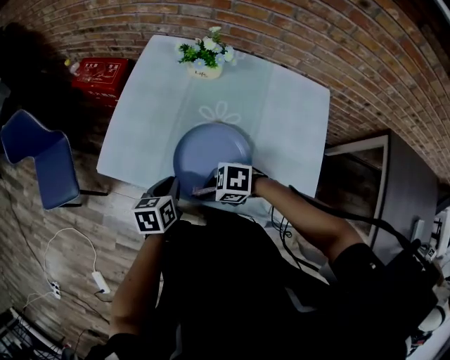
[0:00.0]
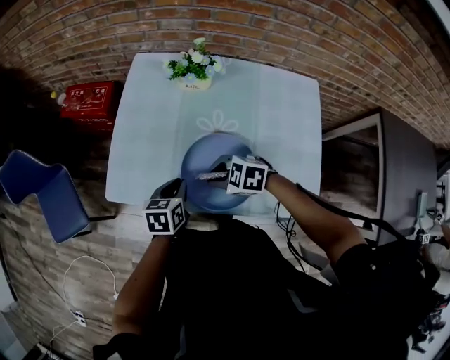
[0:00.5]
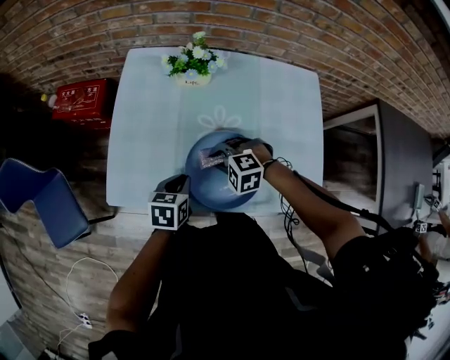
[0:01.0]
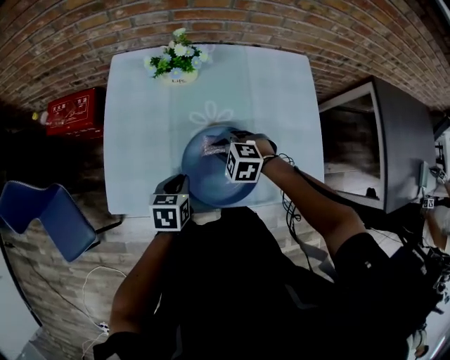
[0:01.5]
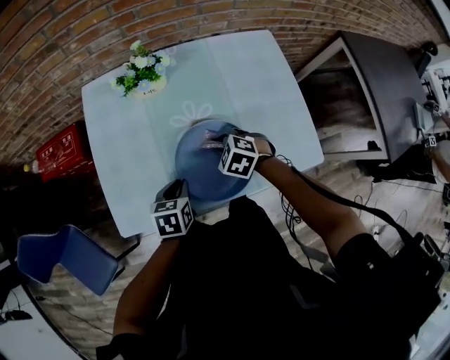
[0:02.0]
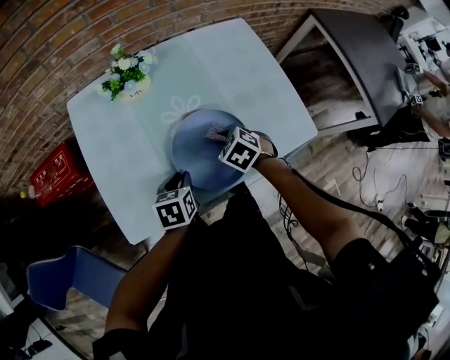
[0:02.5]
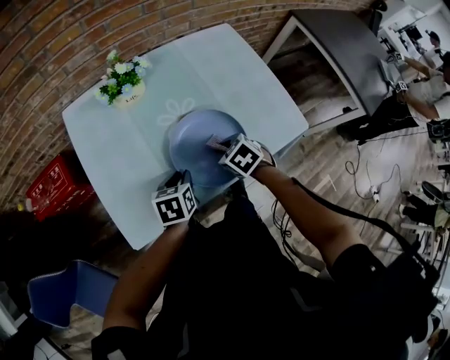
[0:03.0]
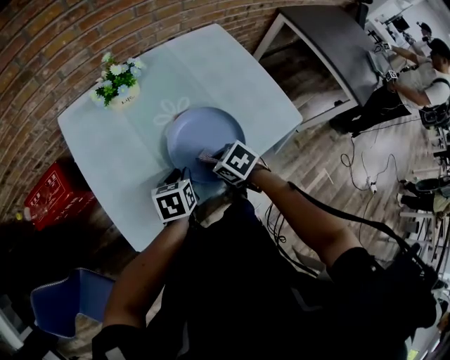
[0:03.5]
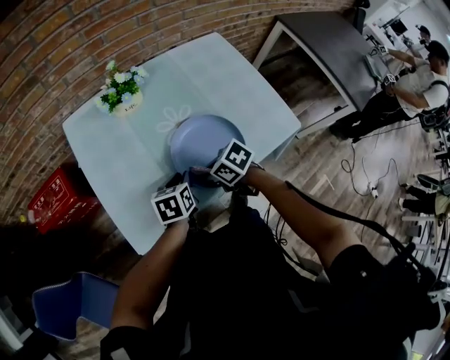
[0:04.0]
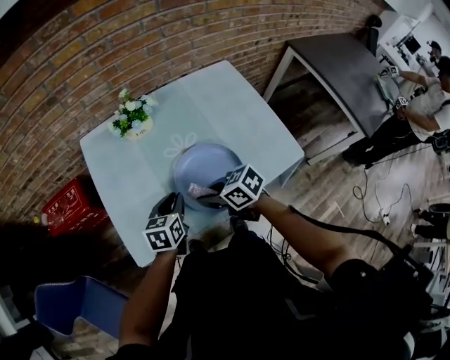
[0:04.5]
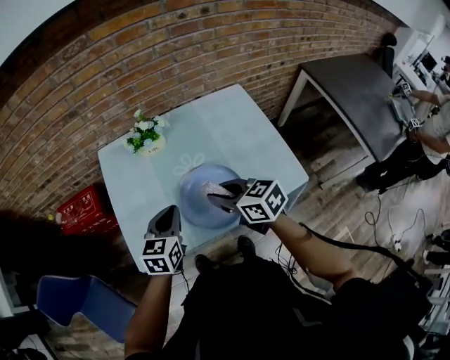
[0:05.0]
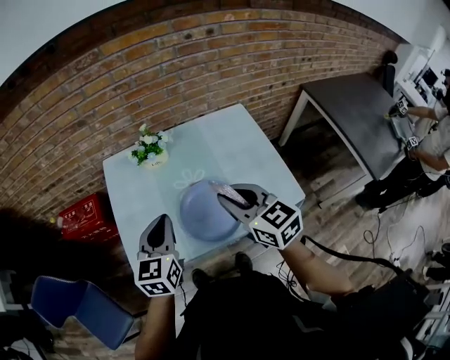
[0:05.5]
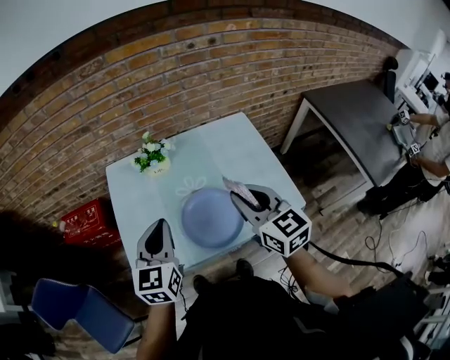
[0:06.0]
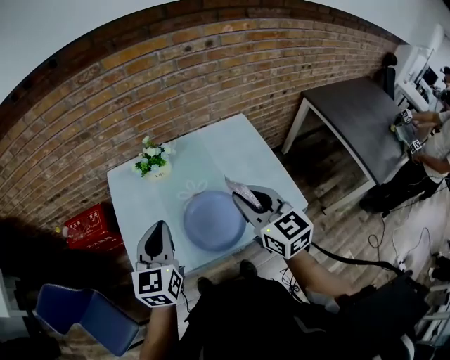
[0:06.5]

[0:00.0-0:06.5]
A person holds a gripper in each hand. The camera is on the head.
0:00.0 to 0:02.0: The left gripper moves about 5 cm, and changes its angle by about 30 degrees. The right gripper shifts by some 15 cm, and swivels approximately 60 degrees.
0:02.0 to 0:04.5: The right gripper shifts approximately 15 cm backward, upward and to the left, and tips its fingers upward by roughly 30 degrees, while the left gripper changes place by approximately 5 cm.
0:04.5 to 0:06.5: The right gripper moves upward and to the right, about 25 cm, and rotates some 50 degrees. Meanwhile the left gripper moves upward, approximately 25 cm, and turns by approximately 30 degrees.

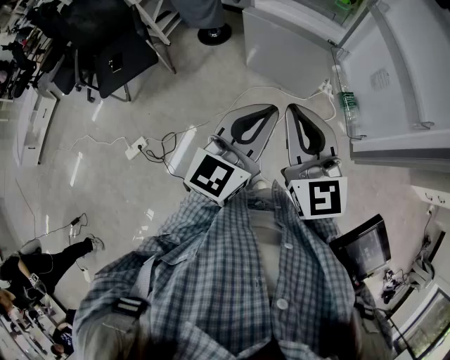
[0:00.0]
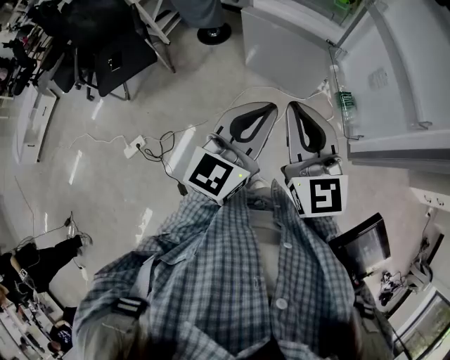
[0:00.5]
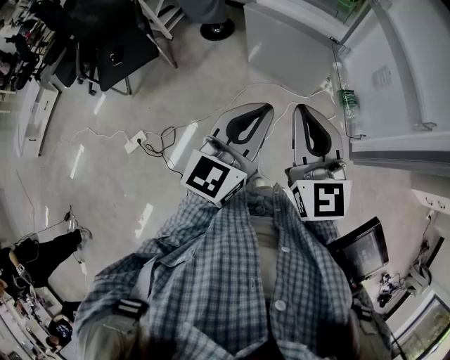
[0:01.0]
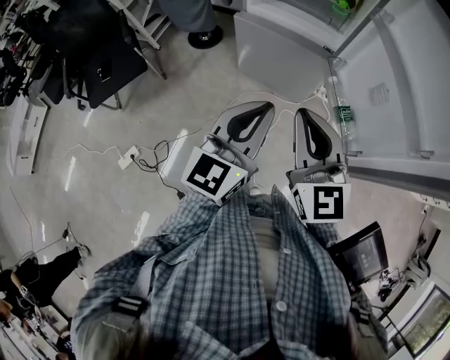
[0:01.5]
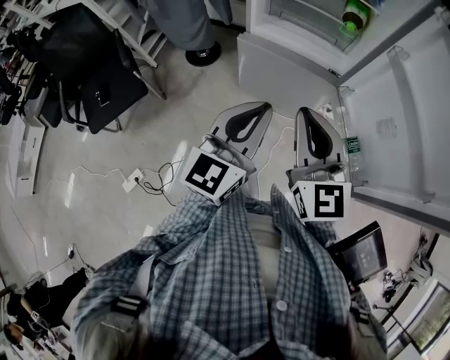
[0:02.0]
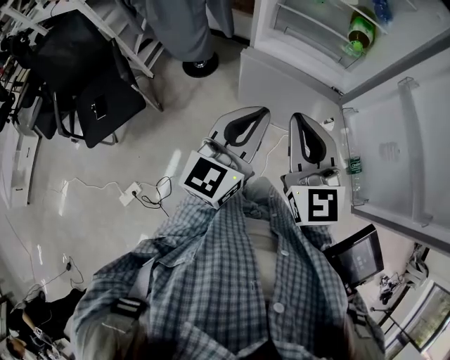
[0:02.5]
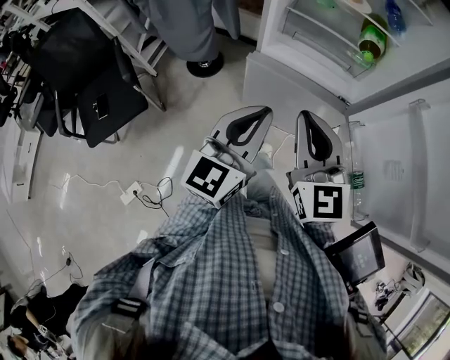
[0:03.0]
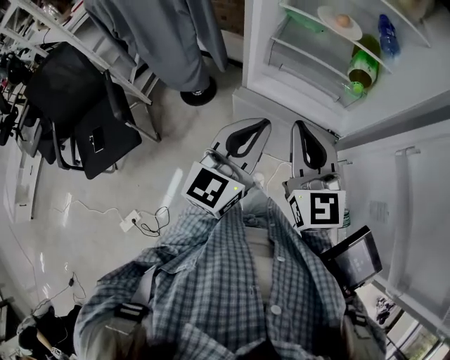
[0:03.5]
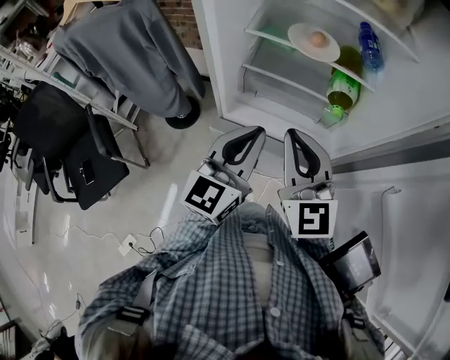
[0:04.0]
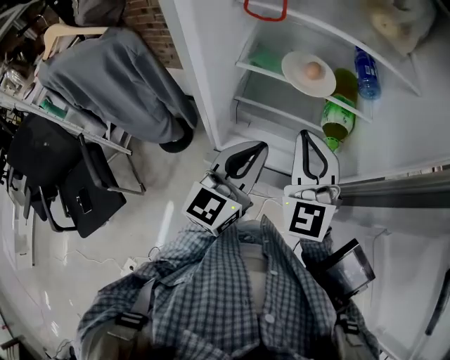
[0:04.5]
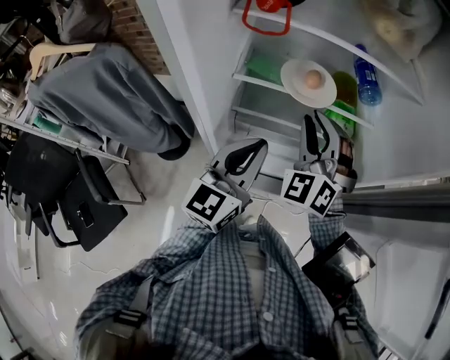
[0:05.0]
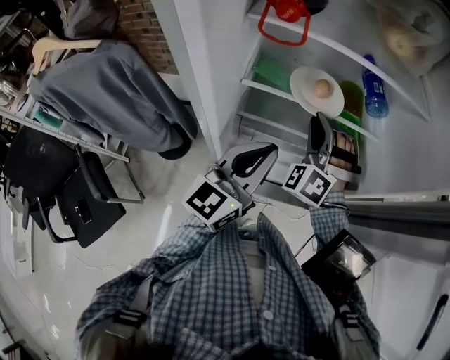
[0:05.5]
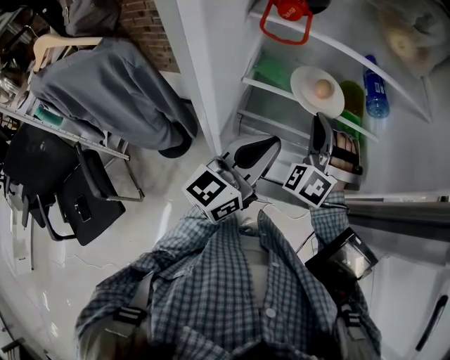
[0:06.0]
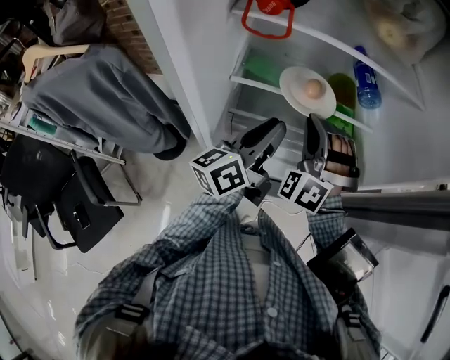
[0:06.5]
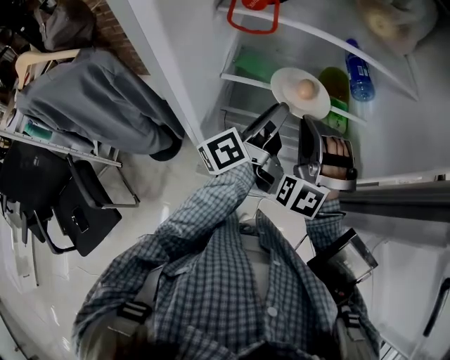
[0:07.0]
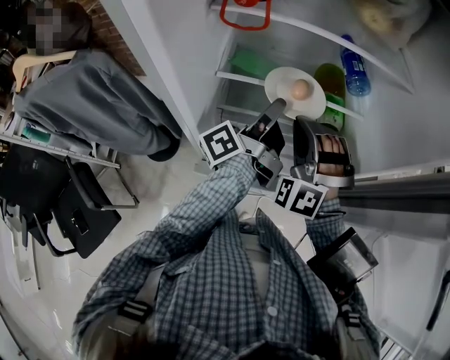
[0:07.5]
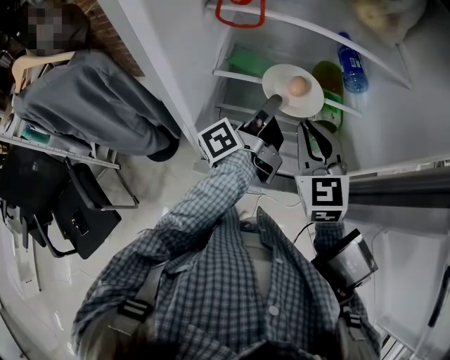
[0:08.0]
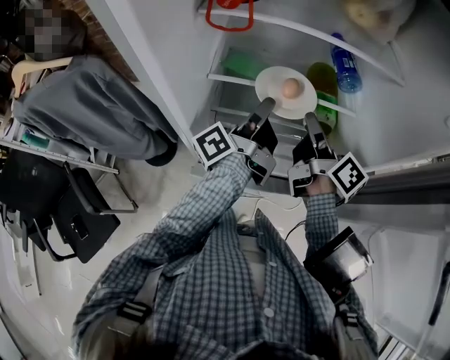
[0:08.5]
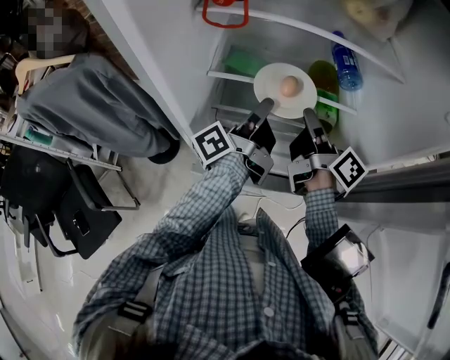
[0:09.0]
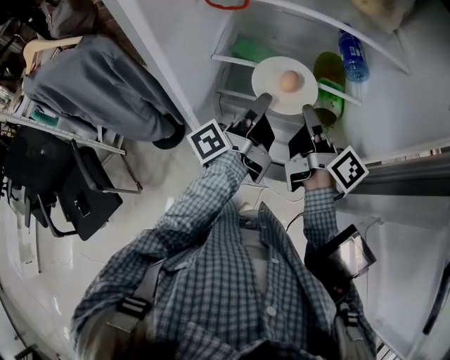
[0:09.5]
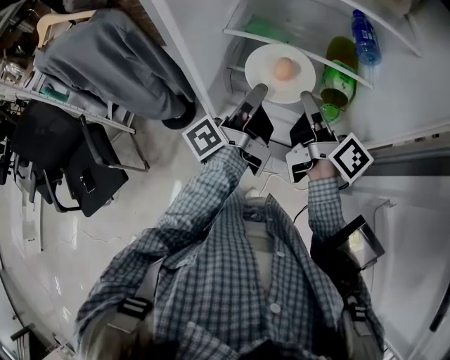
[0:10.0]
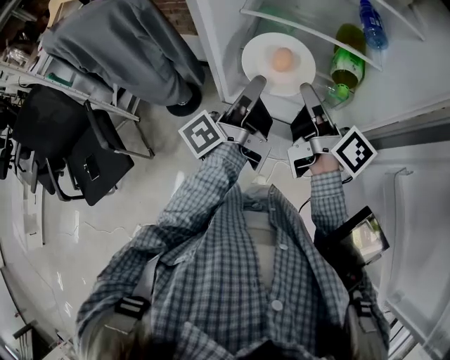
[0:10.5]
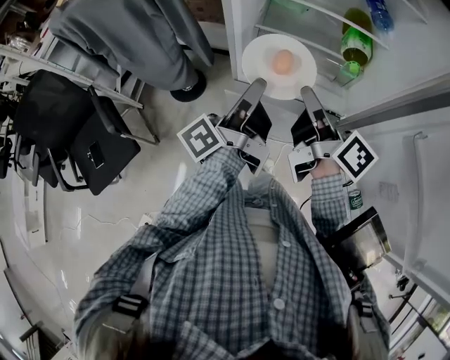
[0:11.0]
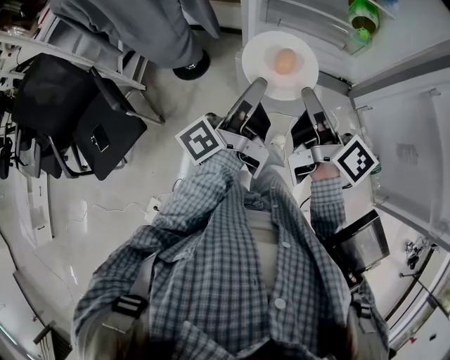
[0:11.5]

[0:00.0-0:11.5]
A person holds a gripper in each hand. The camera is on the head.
0:00.0 to 0:02.0: The left gripper travels forward and to the left by some 20 cm. Meanwhile the right gripper shifts approximately 15 cm forward.
0:02.0 to 0:04.0: The two grippers go some 30 cm forward.
0:04.0 to 0:06.0: The right gripper goes about 25 cm forward, and rotates around the line of its fingers by about 60 degrees, counterclockwise from behind, while the left gripper moves forward, roughly 15 cm, and rotates about 20 degrees.
0:06.0 to 0:07.5: The left gripper goes roughly 10 cm forward, rotates around the line of its fingers by about 60 degrees, counterclockwise from behind, and opens, while the right gripper changes place by roughly 5 cm.
0:07.5 to 0:09.5: The right gripper goes about 5 cm to the right, and twists some 140 degrees clockwise, seen from behind.
0:09.5 to 0:11.5: Both grippers travel together backward and to the left, approximately 35 cm.

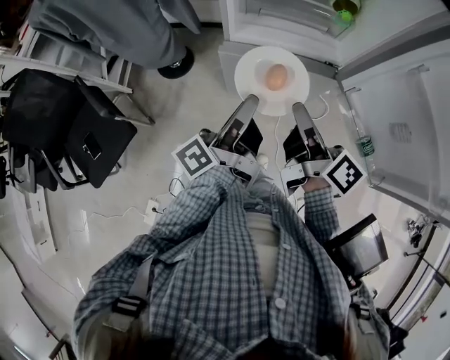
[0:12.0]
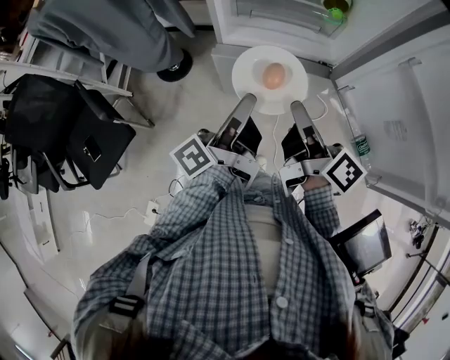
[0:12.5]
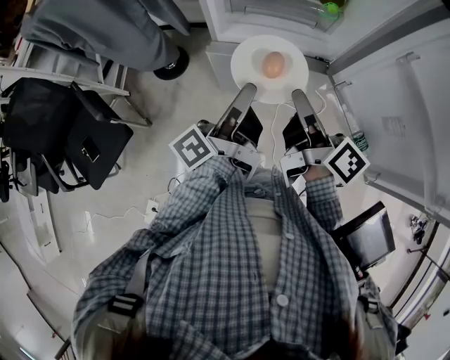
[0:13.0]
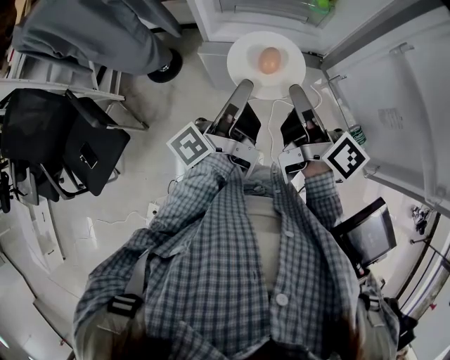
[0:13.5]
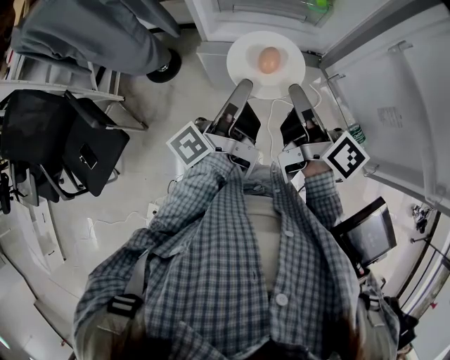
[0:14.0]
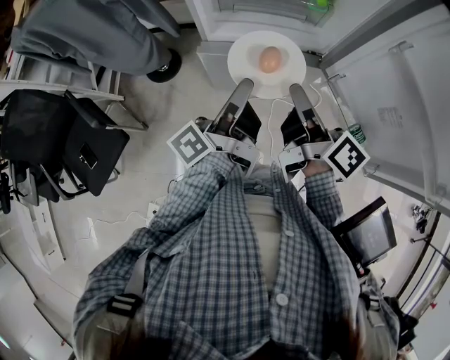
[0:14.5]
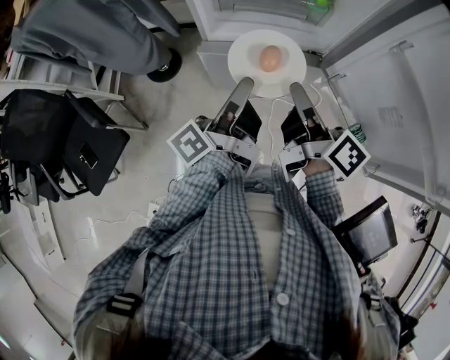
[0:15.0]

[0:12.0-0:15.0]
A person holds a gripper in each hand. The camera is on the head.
0:12.0 to 0:13.5: The left gripper moves some 5 cm; the right gripper ends up roughly 5 cm from where it was.
0:13.5 to 0:15.0: Both grippers stay put.

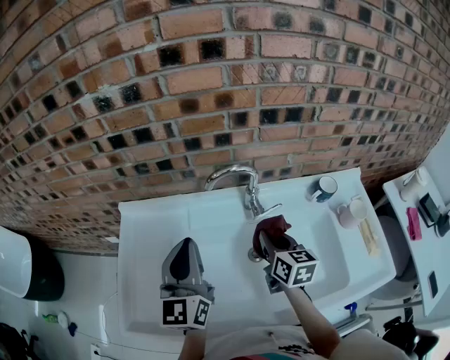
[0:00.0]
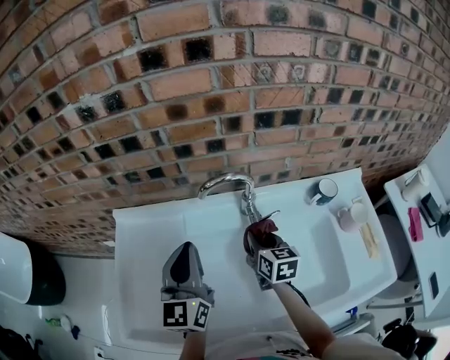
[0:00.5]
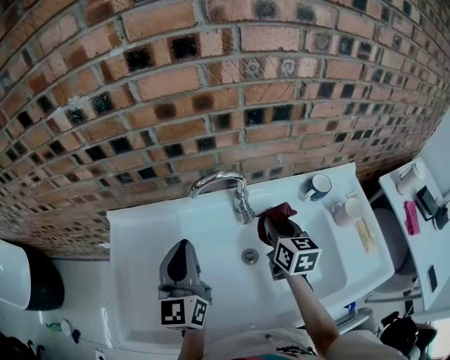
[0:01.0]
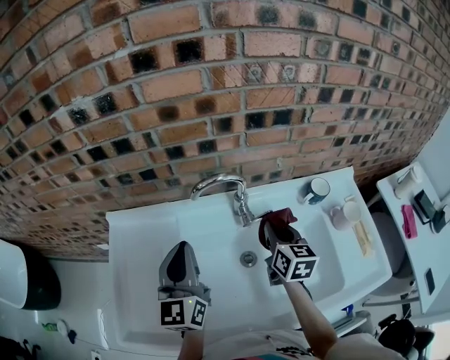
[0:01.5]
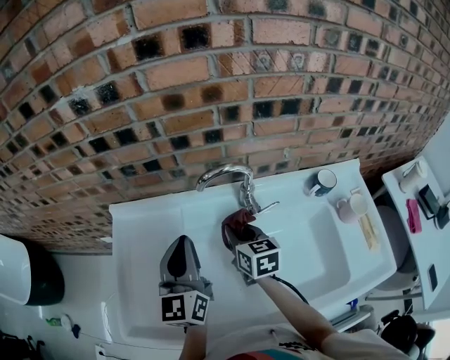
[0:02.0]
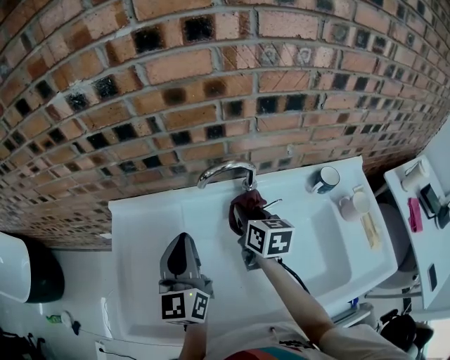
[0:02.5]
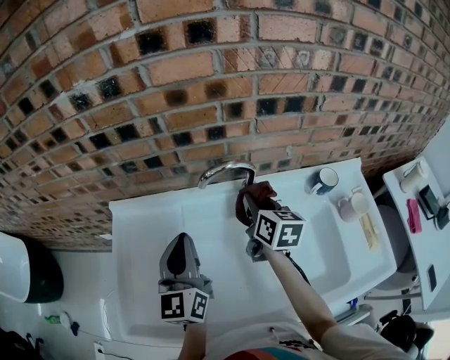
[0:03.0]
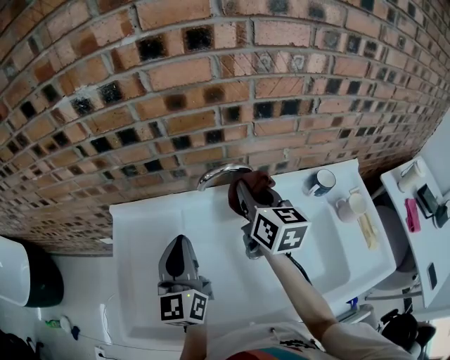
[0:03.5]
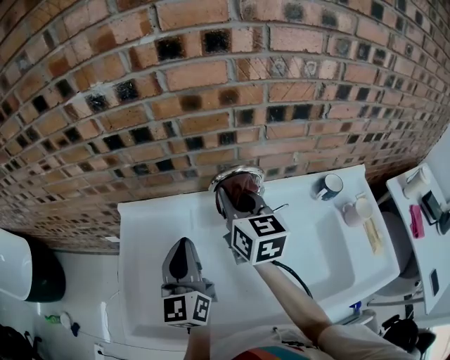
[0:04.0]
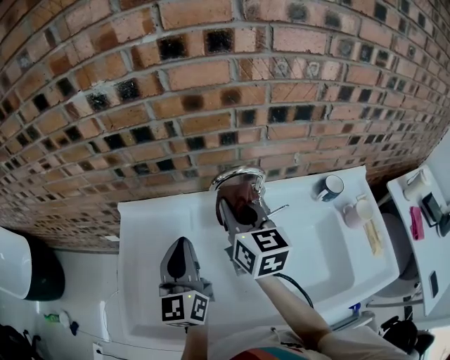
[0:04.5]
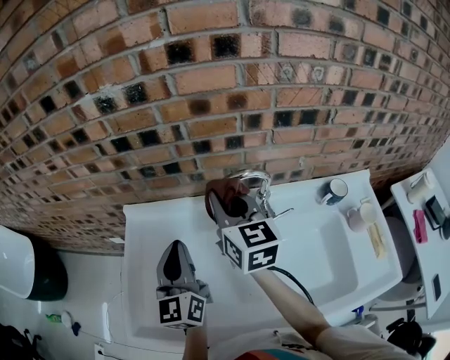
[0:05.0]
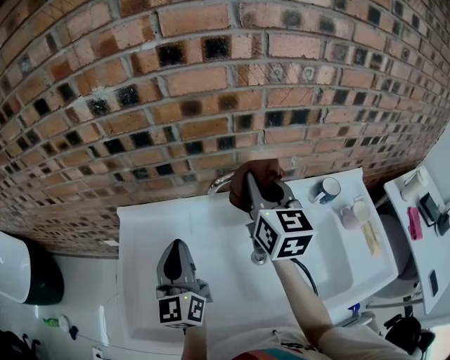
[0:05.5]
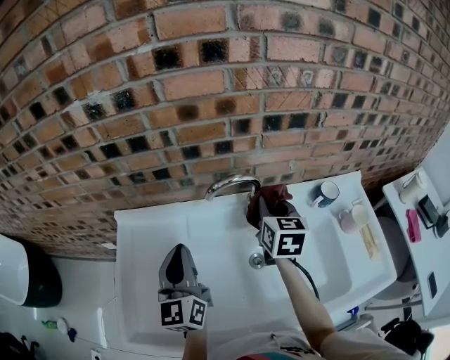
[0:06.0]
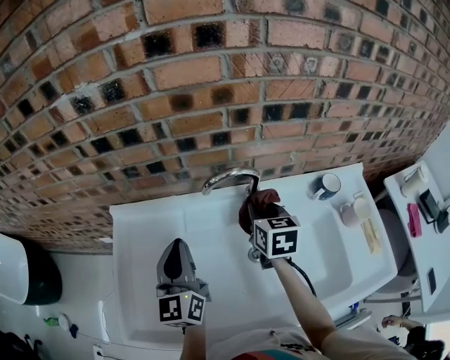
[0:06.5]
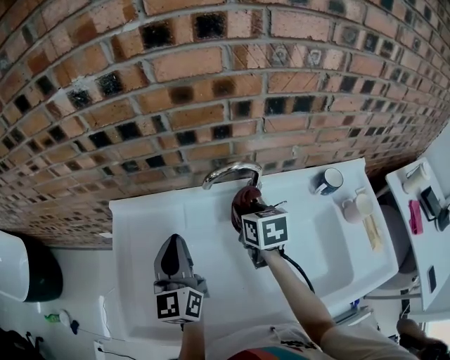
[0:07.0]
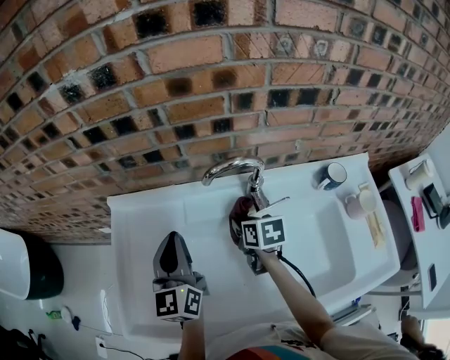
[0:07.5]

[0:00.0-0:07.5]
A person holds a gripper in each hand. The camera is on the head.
0:00.0 to 0:02.0: The right gripper shifts about 10 cm to the left and forward.
0:02.0 to 0:04.0: The right gripper shifts approximately 15 cm upward.
0:04.0 to 0:05.5: The right gripper heads to the right and upward, covering approximately 10 cm.
0:05.5 to 0:07.5: The right gripper heads downward, covering approximately 25 cm, and angles its fingers downward, by some 40 degrees.
